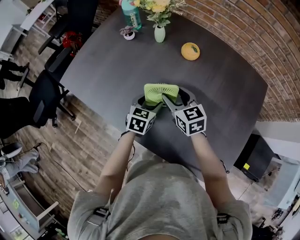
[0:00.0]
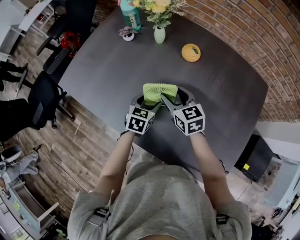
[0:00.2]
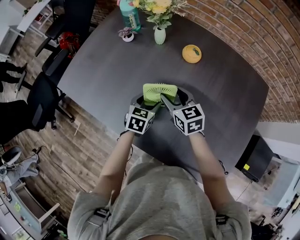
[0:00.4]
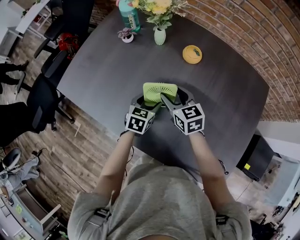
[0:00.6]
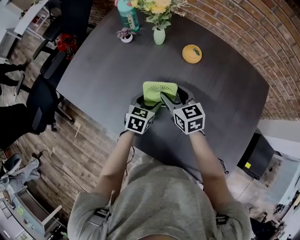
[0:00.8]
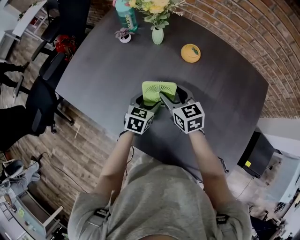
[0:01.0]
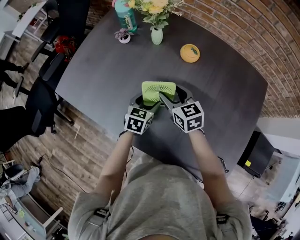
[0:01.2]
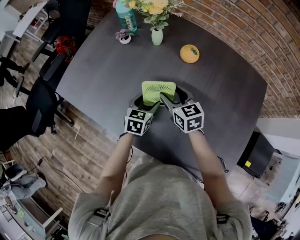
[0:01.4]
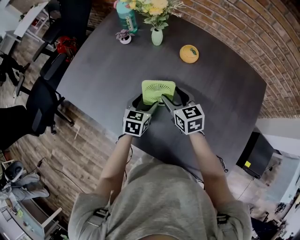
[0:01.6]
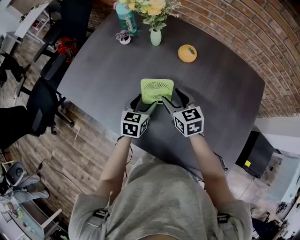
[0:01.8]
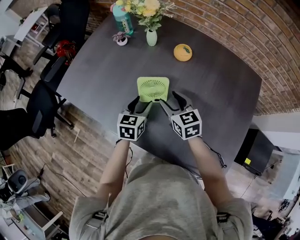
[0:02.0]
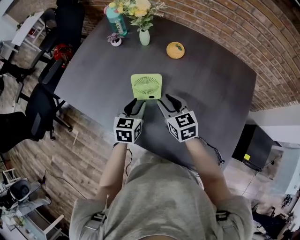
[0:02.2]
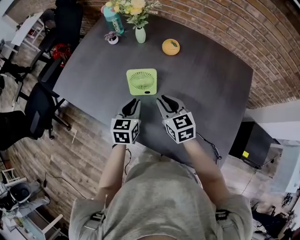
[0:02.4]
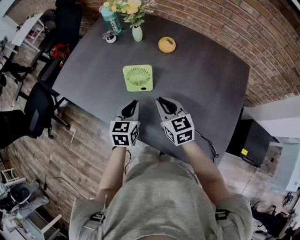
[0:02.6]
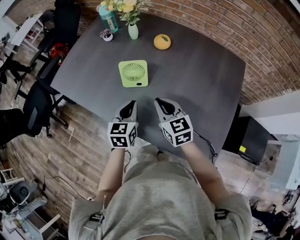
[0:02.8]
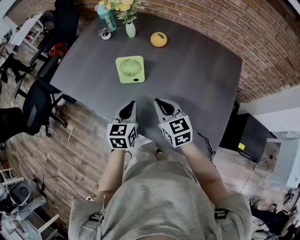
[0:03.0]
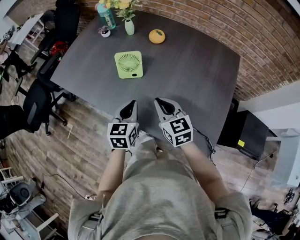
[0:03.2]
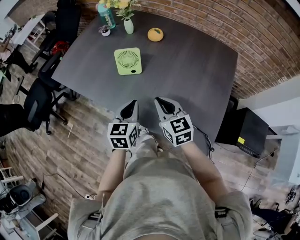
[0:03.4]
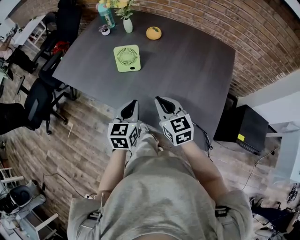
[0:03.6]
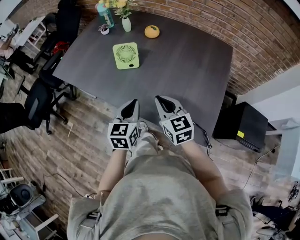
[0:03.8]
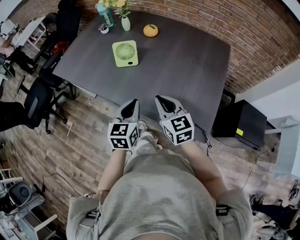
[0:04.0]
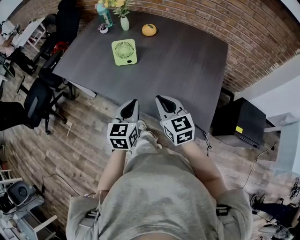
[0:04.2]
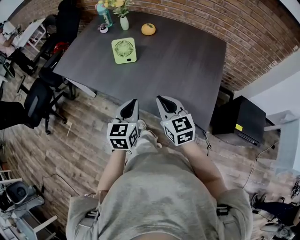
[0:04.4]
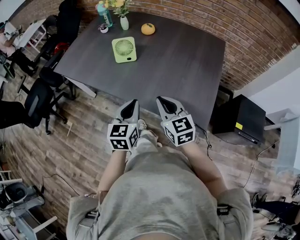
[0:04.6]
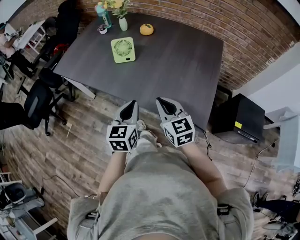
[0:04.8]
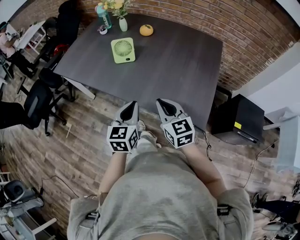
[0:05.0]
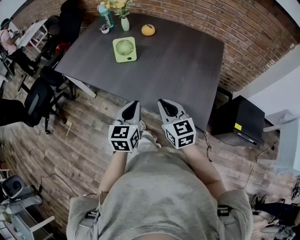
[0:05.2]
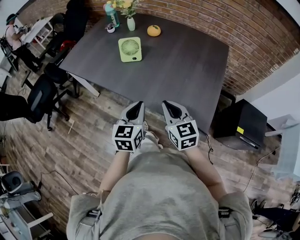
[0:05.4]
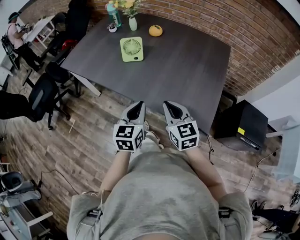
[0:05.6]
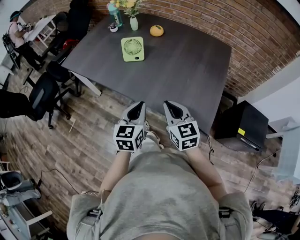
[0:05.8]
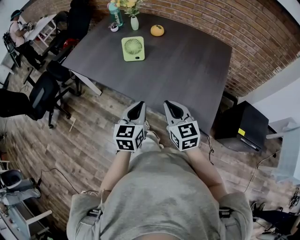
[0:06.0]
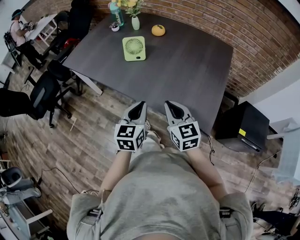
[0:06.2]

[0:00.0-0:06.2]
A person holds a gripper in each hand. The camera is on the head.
0:00.0 to 0:01.6: The grippers stay close to where they were, moving slightly.
0:01.6 to 0:03.2: The right gripper heads backward, covering roughly 25 cm, and closes. Meanwhile the left gripper moves backward and upward, some 25 cm, and closes its fingers.
0:03.2 to 0:04.6: Both grippers travel together backward, approximately 15 cm.
0:04.6 to 0:06.2: The grippers make only small movements.

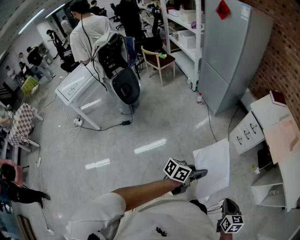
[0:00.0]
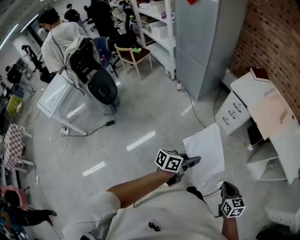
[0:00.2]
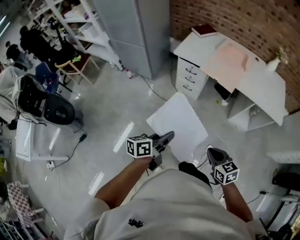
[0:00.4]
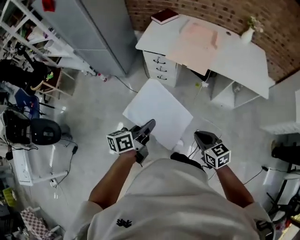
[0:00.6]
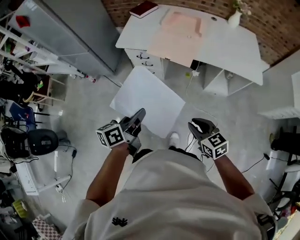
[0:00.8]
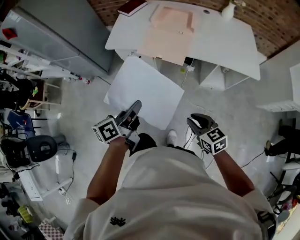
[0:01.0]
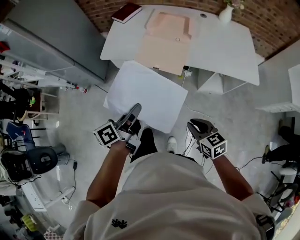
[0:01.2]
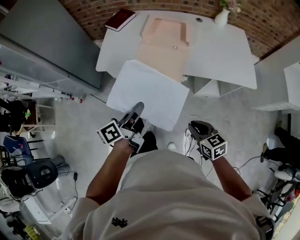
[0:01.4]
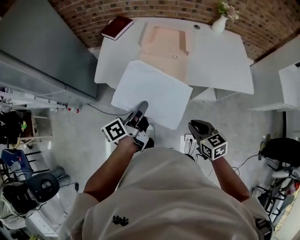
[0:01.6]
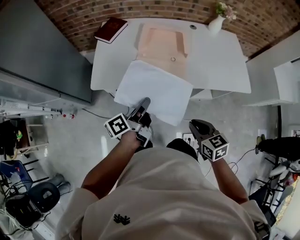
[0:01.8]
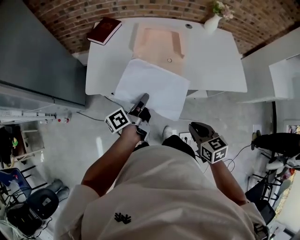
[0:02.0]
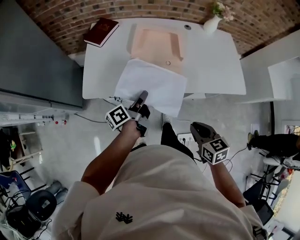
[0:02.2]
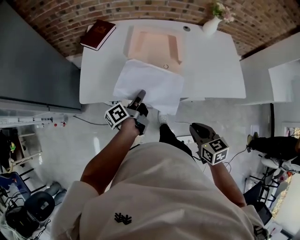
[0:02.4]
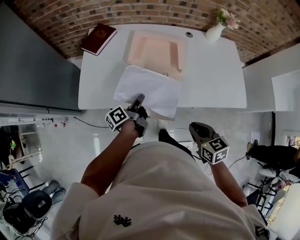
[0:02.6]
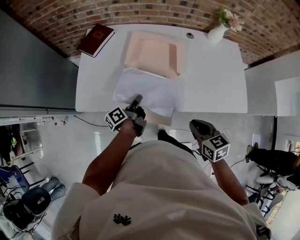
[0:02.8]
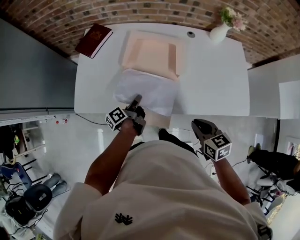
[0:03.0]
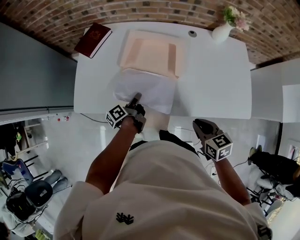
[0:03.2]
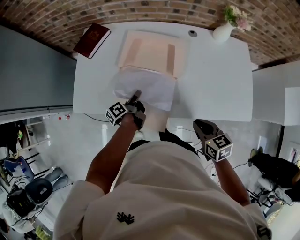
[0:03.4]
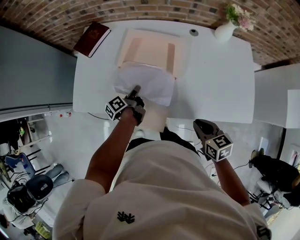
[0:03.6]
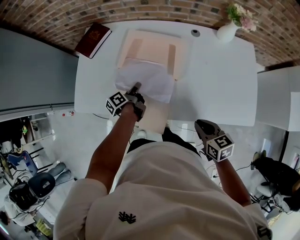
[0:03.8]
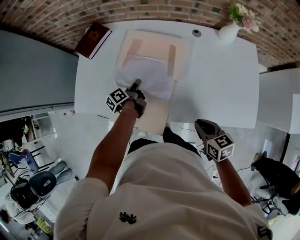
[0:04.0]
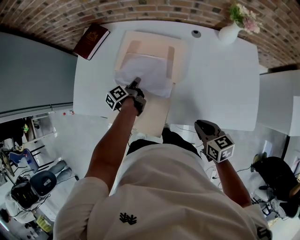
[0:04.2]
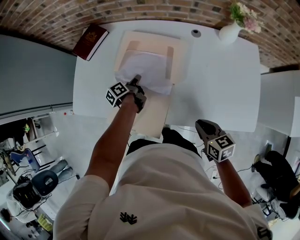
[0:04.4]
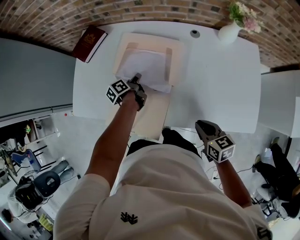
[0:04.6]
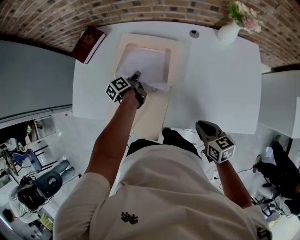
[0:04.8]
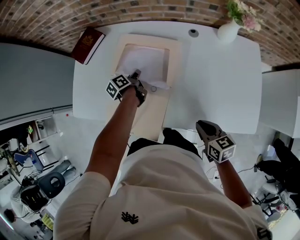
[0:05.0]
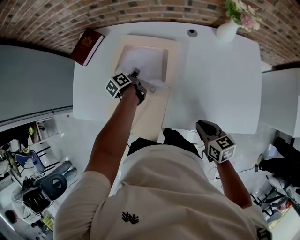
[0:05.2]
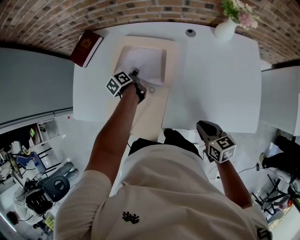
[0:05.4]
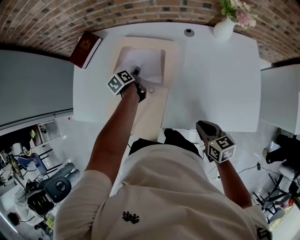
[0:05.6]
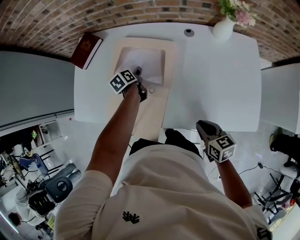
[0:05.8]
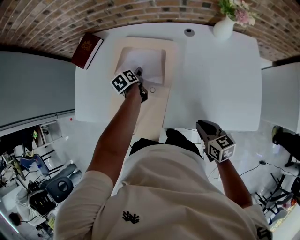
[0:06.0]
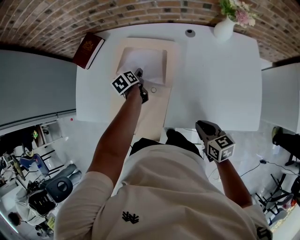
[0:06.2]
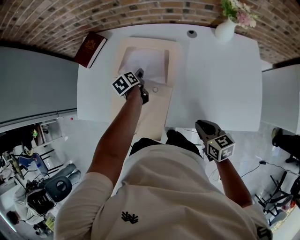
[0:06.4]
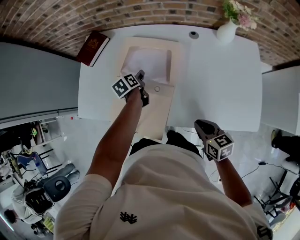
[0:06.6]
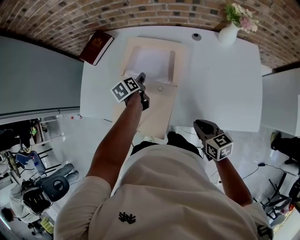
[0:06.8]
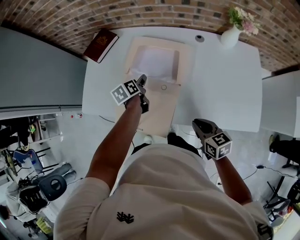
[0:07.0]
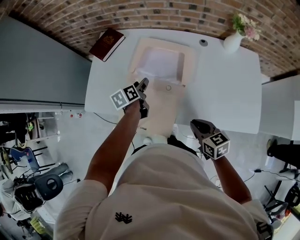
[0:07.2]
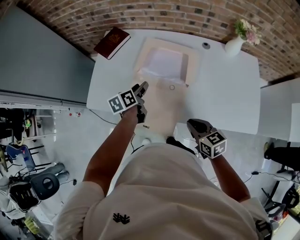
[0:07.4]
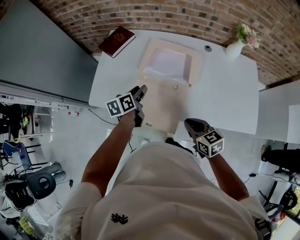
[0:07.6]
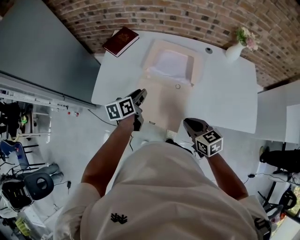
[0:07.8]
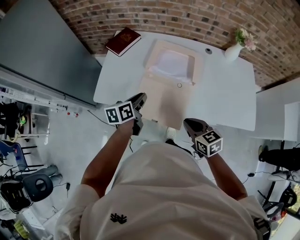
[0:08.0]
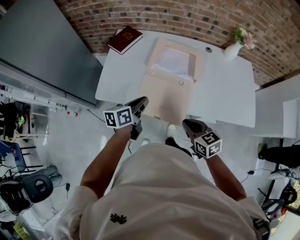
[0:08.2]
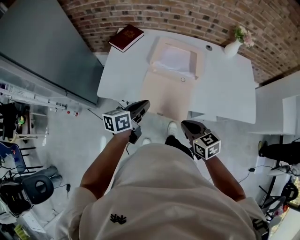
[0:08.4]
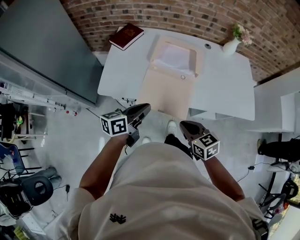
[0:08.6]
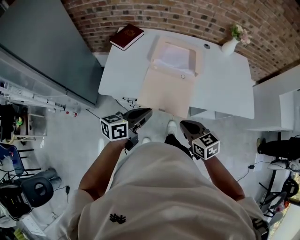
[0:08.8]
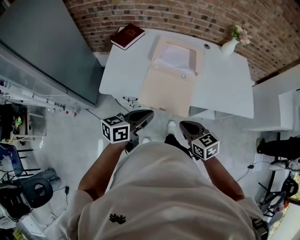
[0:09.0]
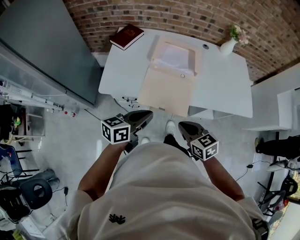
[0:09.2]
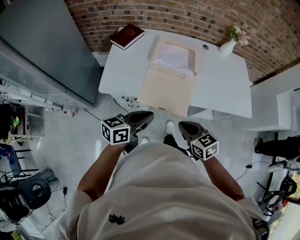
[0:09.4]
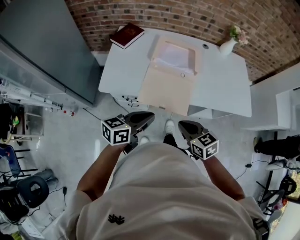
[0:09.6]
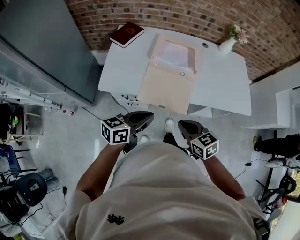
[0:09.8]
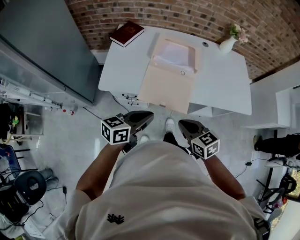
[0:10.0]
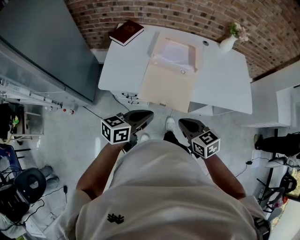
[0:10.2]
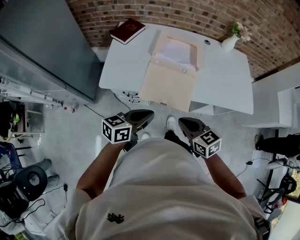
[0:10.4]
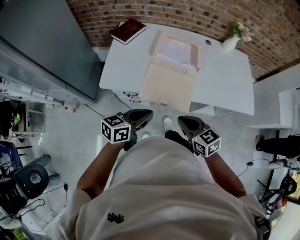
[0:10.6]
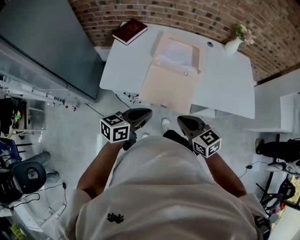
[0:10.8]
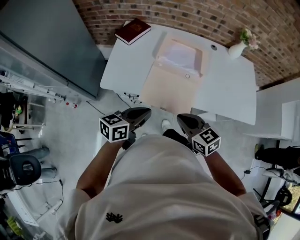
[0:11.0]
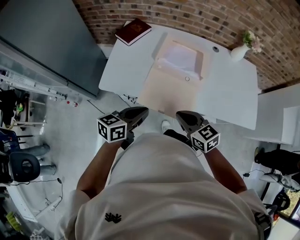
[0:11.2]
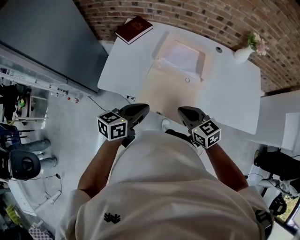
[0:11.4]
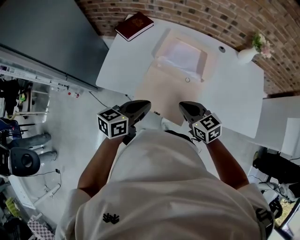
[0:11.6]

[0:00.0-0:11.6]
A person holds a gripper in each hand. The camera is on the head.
0:00.0 to 0:01.4: Both grippers are carried forward and to the right, approximately 50 cm. The right gripper turns by about 20 degrees.
0:01.4 to 0:02.8: The left gripper moves forward and downward, roughly 40 cm. Meanwhile the right gripper goes some 30 cm forward.
0:02.8 to 0:04.4: The left gripper is displaced forward, to the right and downward by about 20 cm, while the right gripper shifts approximately 20 cm to the right, forward and downward.
0:04.4 to 0:05.8: The left gripper travels forward by some 5 cm, changes its angle by approximately 30 degrees, and opens up.
0:05.8 to 0:07.2: The left gripper is displaced to the left, upward and backward by some 15 cm. Meanwhile the right gripper is displaced to the left by roughly 10 cm.
0:07.2 to 0:08.8: The left gripper heads backward, to the left and upward, covering approximately 35 cm, swivels some 50 degrees, and closes up. The right gripper moves to the left and backward, approximately 30 cm.
0:08.8 to 0:10.2: The grippers make only small movements.
0:10.2 to 0:11.6: Both grippers travel together forward, approximately 15 cm.

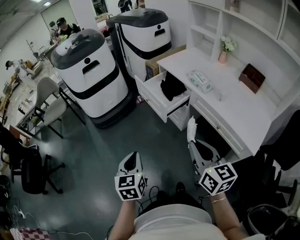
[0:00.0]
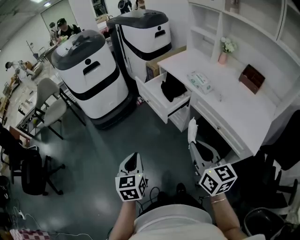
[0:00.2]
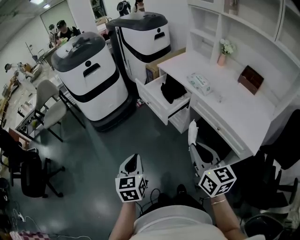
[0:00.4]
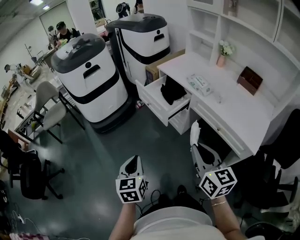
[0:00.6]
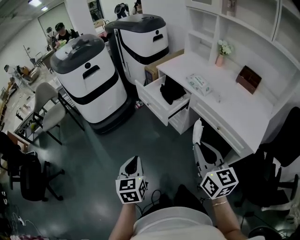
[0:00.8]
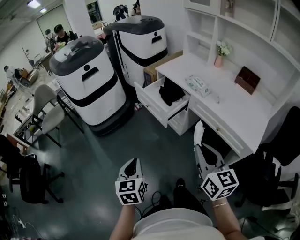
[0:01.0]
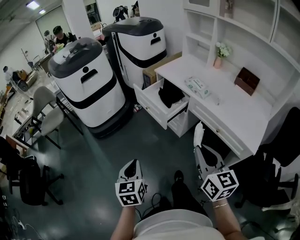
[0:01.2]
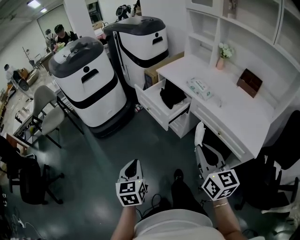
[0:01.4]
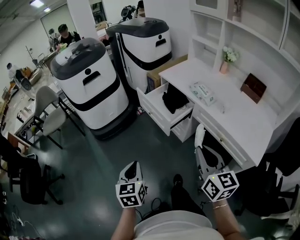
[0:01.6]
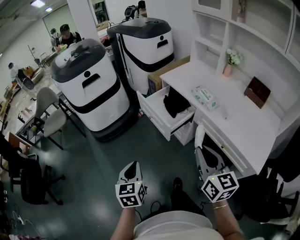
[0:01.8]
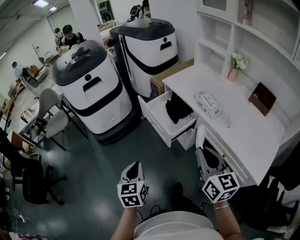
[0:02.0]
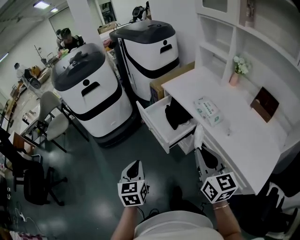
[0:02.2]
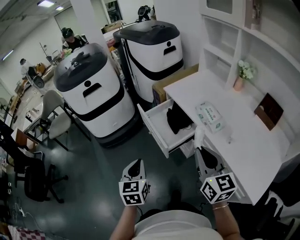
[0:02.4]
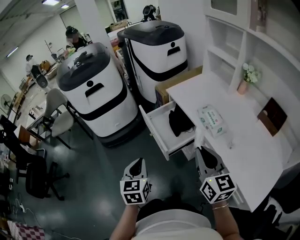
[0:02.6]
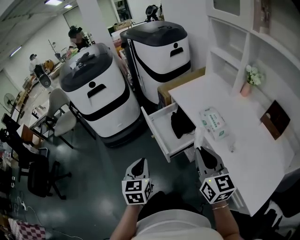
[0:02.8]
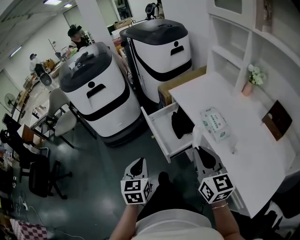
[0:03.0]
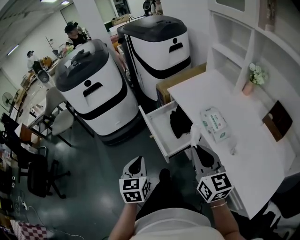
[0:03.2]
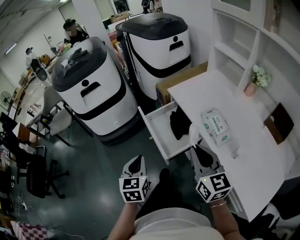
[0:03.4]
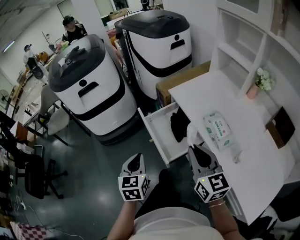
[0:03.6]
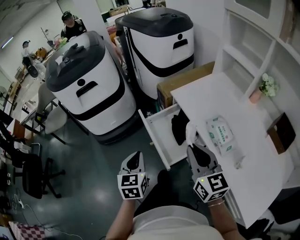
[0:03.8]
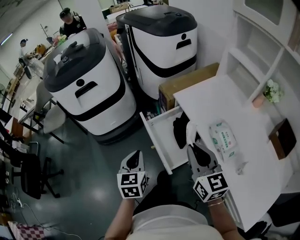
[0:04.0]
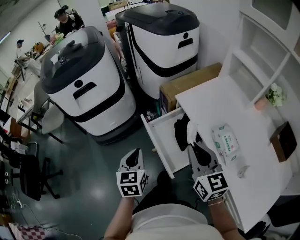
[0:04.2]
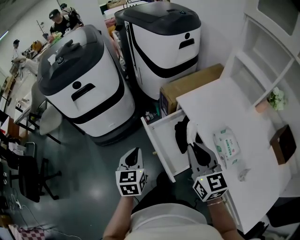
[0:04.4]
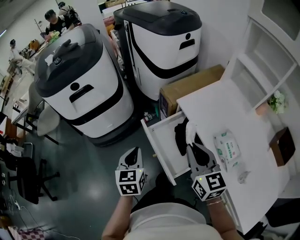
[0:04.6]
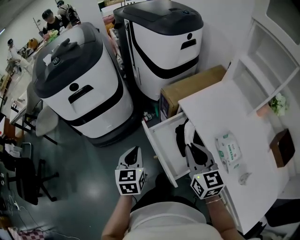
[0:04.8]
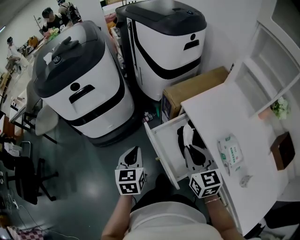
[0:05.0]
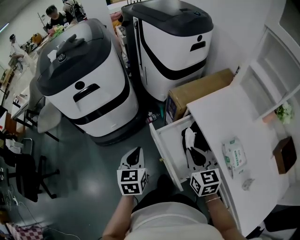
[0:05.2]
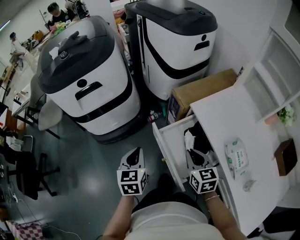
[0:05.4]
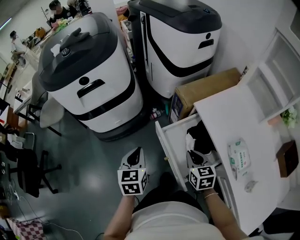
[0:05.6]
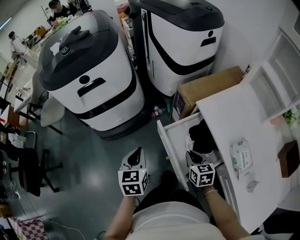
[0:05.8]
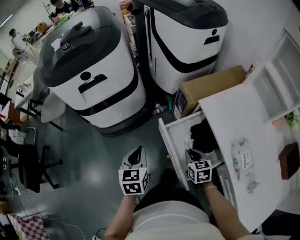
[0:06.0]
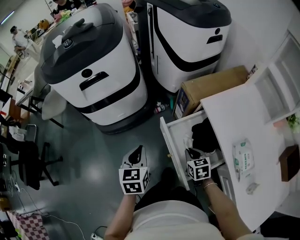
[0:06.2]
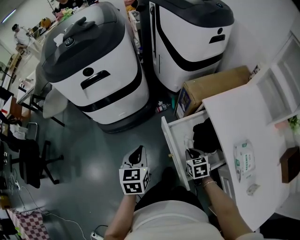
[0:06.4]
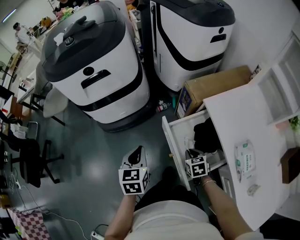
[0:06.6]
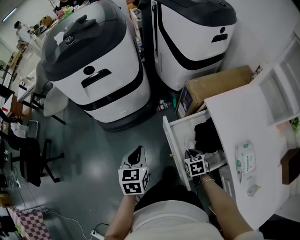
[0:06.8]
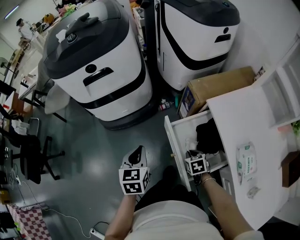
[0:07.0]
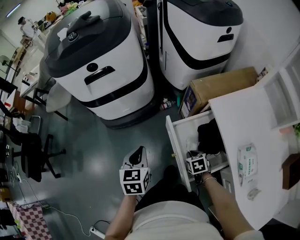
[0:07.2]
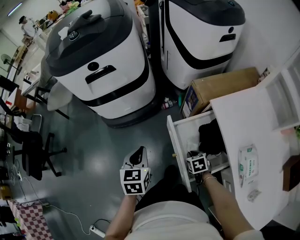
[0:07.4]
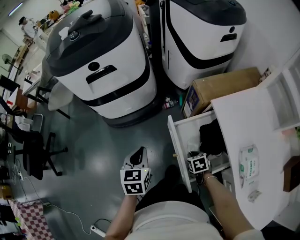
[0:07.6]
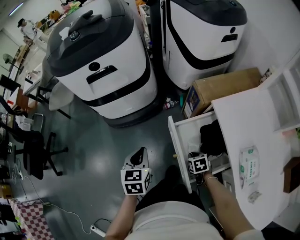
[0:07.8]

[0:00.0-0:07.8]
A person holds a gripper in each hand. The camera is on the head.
0:00.0 to 0:01.6: There are only small adjustments of the grippers.
0:01.6 to 0:03.2: The right gripper shifts roughly 25 cm forward, while the left gripper heads forward and to the right, covering some 25 cm.
0:03.2 to 0:04.6: Both grippers travel together forward, about 20 cm.
0:04.6 to 0:06.2: The left gripper shifts roughly 5 cm to the left. The right gripper is displaced downward by some 25 cm, and angles its fingers downward, by some 40 degrees.
0:06.2 to 0:07.8: The right gripper heads downward, covering some 10 cm.
